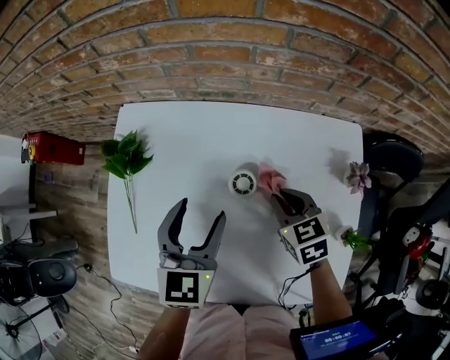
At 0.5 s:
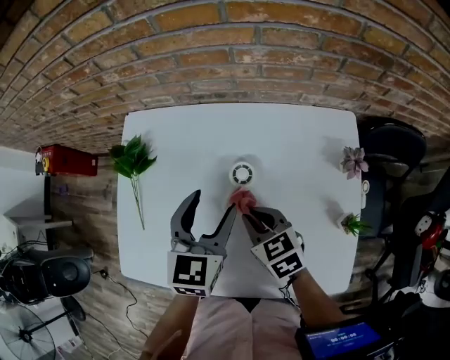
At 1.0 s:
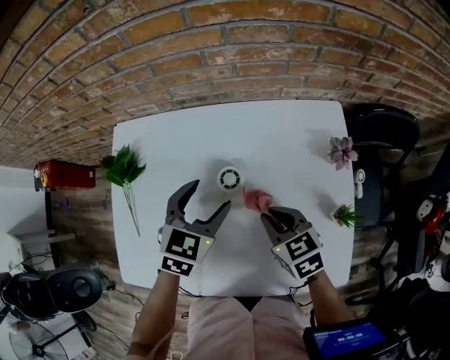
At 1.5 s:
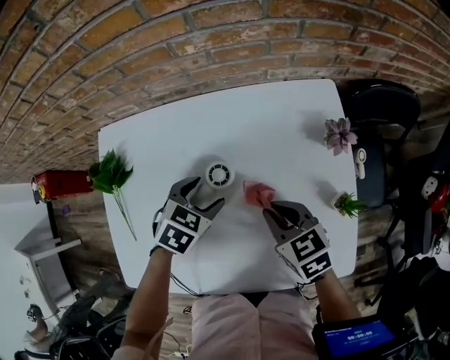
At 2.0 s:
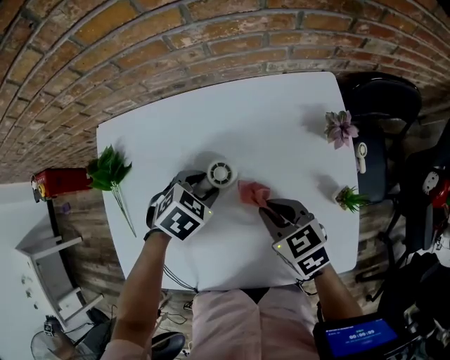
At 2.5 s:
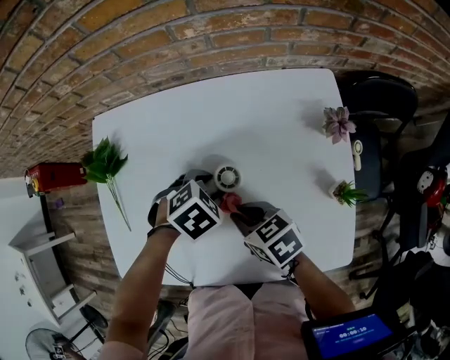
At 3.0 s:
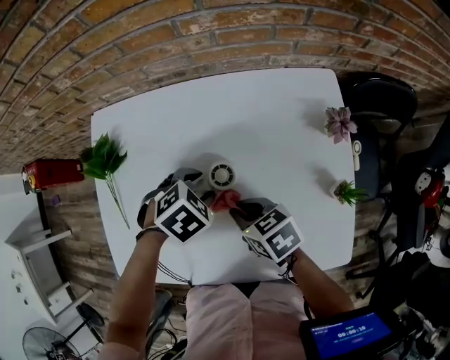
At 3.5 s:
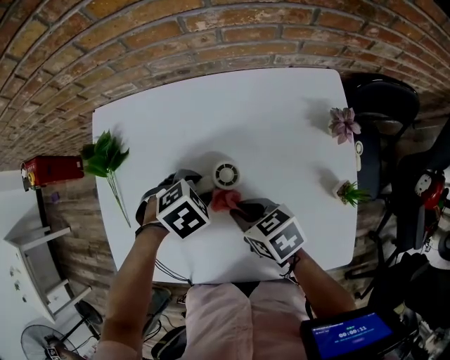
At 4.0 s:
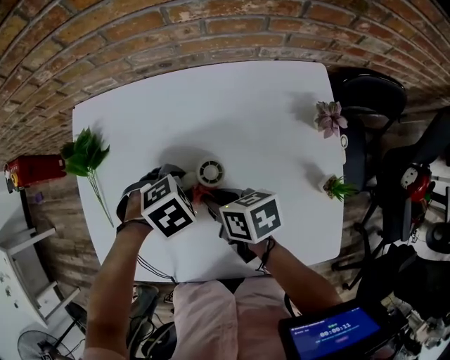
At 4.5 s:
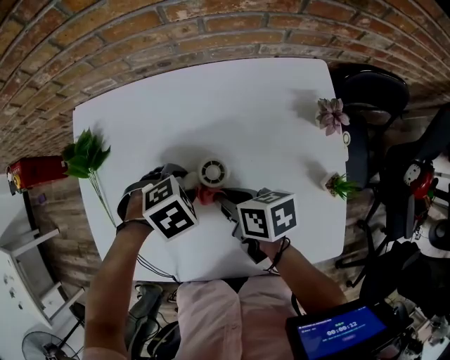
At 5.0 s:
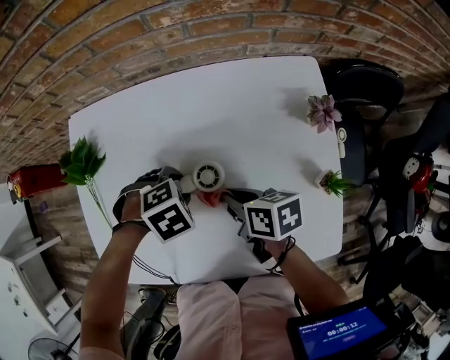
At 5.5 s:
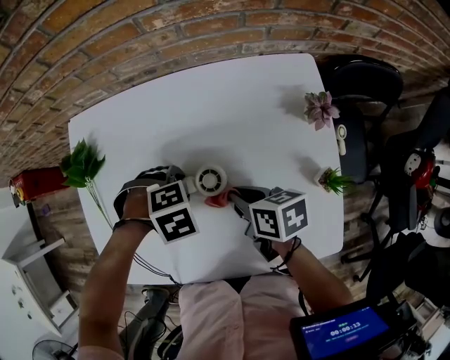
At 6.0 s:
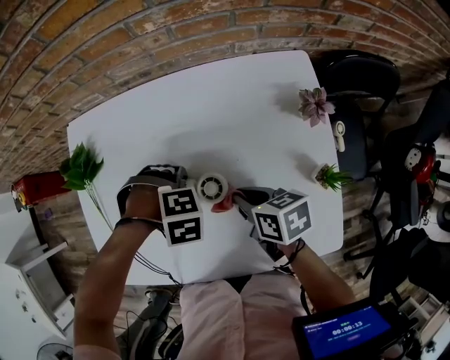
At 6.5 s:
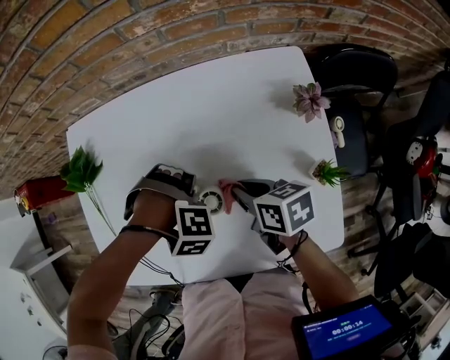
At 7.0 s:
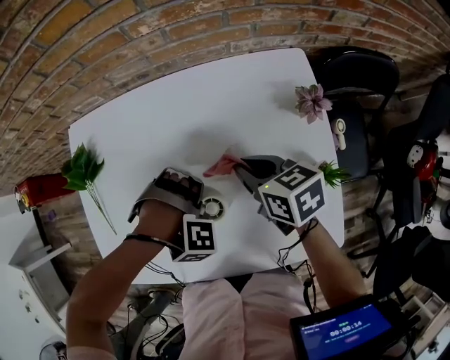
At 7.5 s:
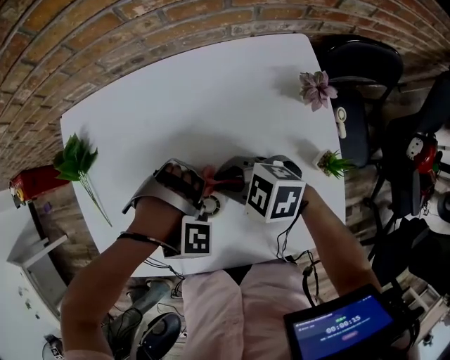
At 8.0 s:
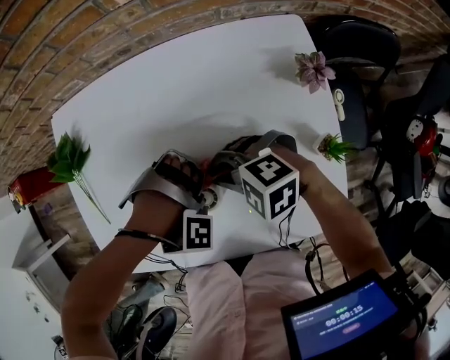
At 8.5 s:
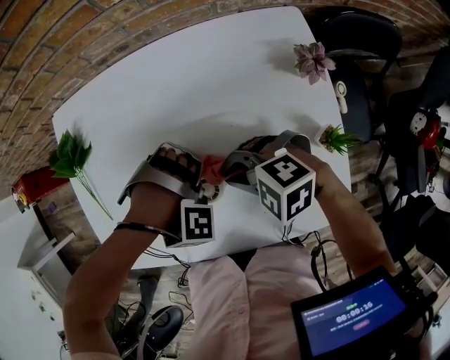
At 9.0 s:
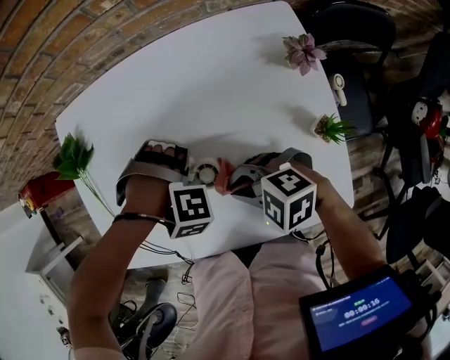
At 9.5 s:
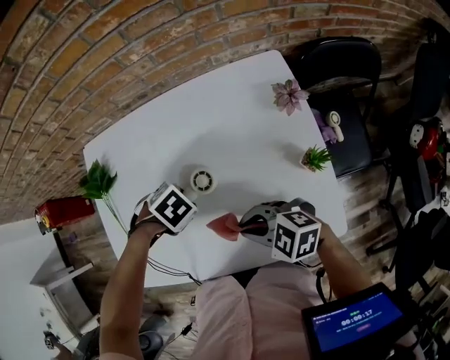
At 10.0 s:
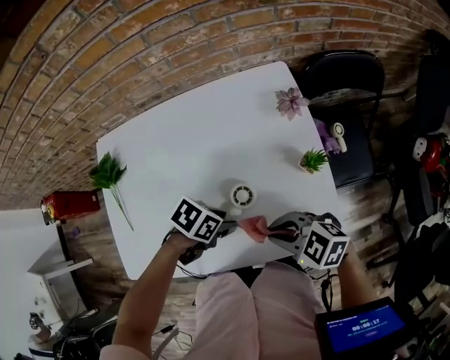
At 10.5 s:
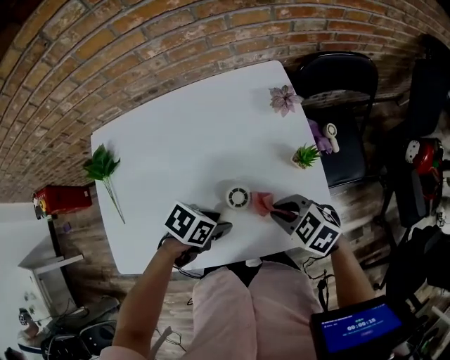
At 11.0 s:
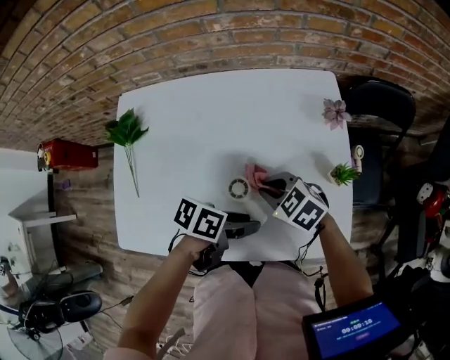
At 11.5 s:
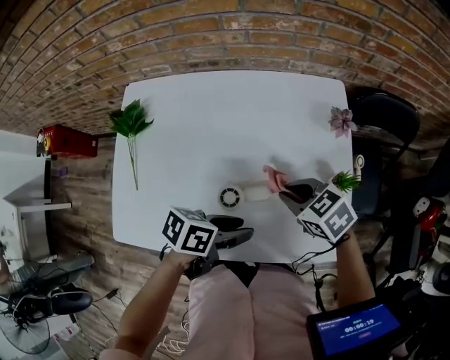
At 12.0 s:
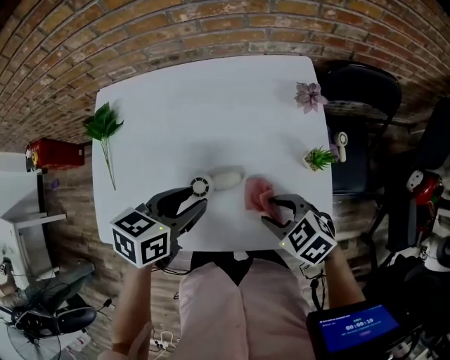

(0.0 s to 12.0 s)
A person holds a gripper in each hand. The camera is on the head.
0.0 s - 2.0 s: The right gripper is displaced backward by approximately 10 cm. The left gripper travels downward and to the right by roughly 15 cm, and tips its fingers downward by approximately 40 degrees.
2.0 s - 4.0 s: The right gripper moves roughly 10 cm, and changes its angle by some 30 degrees.
4.0 s - 6.0 s: The right gripper changes place by some 10 cm; the left gripper changes its angle by about 40 degrees.
6.0 s - 8.0 s: The left gripper twists approximately 40 degrees clockwise, seen from behind. The right gripper changes place by some 5 cm, and twists some 80 degrees counterclockwise, seen from behind.
8.0 s - 10.0 s: The right gripper ends up some 20 cm from where it was, and changes its angle by about 30 degrees. Meanwhile the left gripper ends up approximately 15 cm from where it was, and twists some 100 degrees counterclockwise, seen from behind.
10.0 s - 12.0 s: The right gripper opens. Meanwhile the left gripper shifts approximately 10 cm upward, and rotates some 40 degrees.

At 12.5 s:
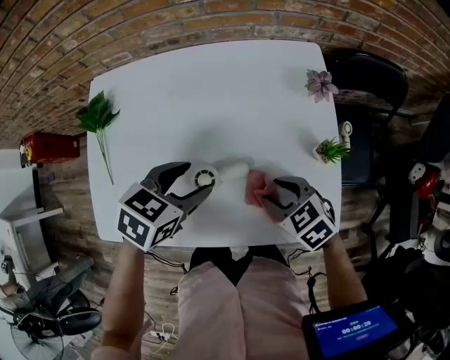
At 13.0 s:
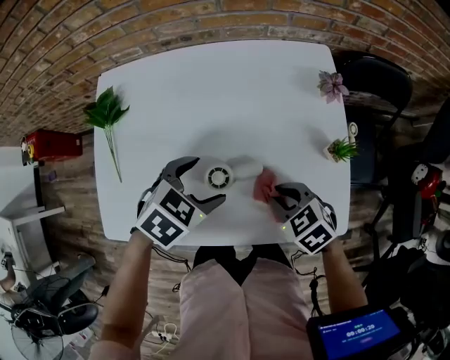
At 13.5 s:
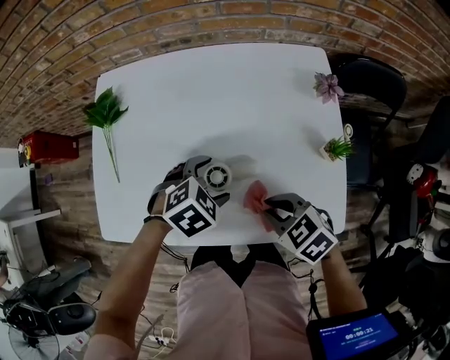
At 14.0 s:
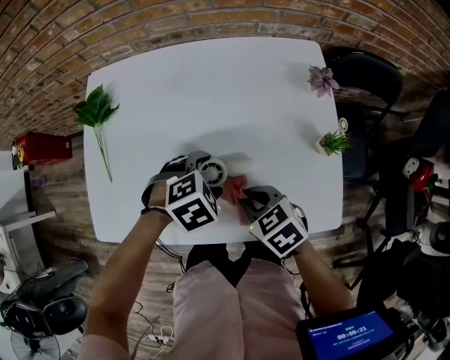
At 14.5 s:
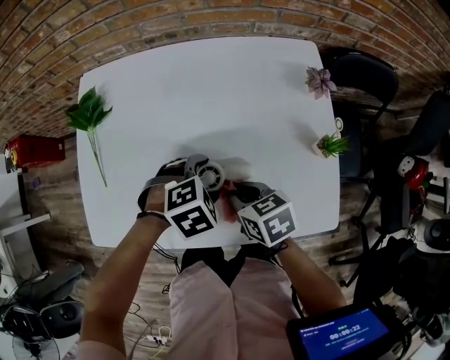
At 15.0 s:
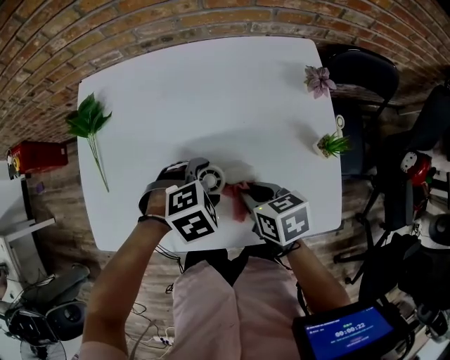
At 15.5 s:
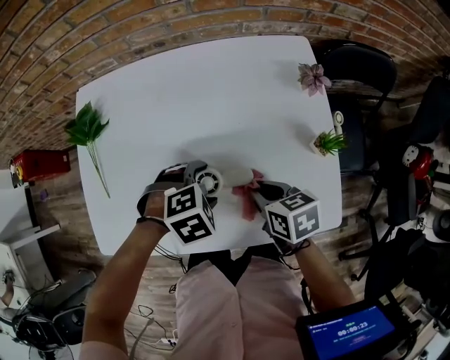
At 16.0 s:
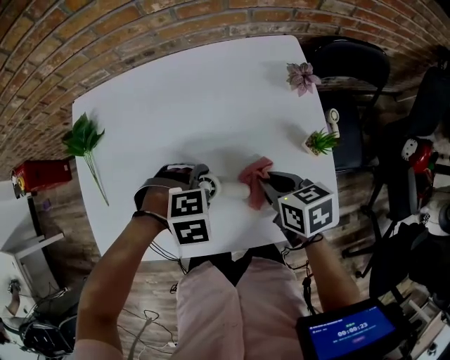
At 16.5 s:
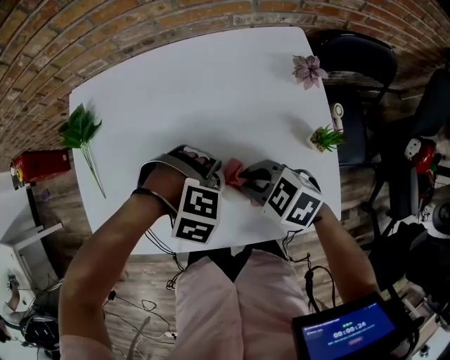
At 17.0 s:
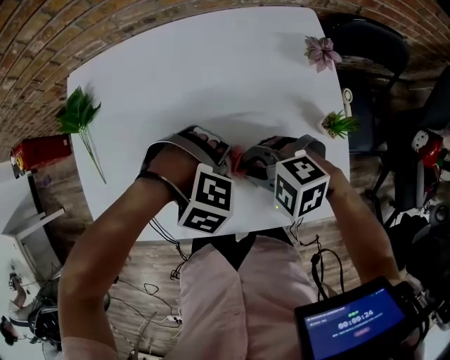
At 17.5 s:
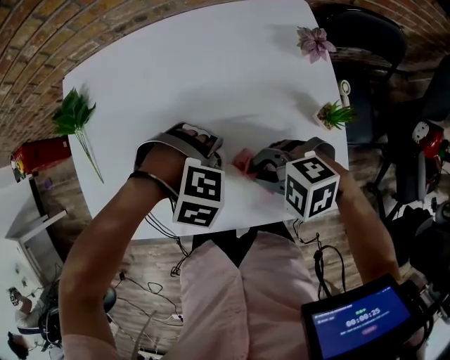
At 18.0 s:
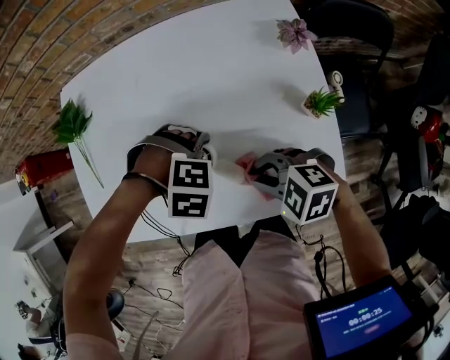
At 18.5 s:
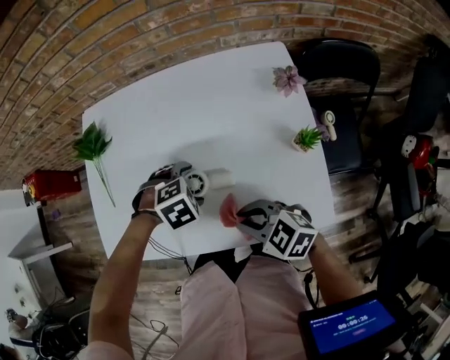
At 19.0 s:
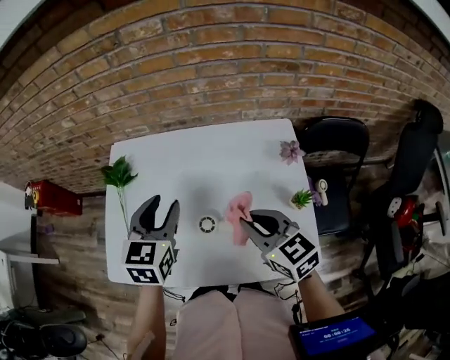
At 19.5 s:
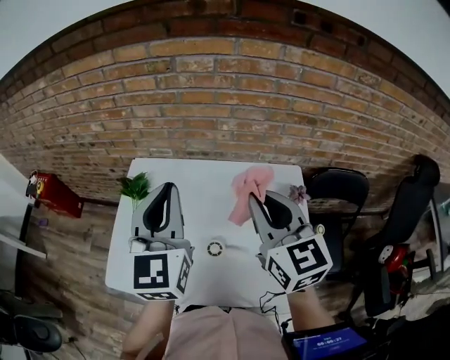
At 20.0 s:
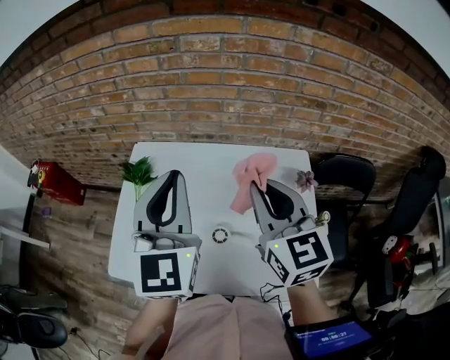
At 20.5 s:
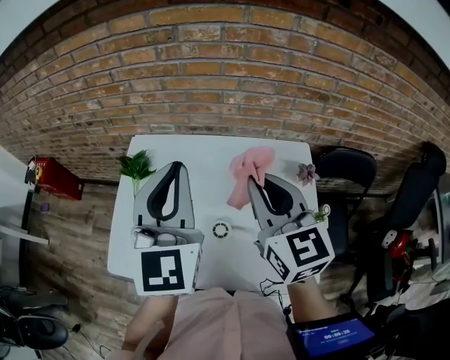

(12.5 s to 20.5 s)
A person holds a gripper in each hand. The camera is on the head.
12.5 s - 14.5 s: The left gripper shifts about 10 cm downward, and rotates roughly 40 degrees, while the right gripper ends up about 10 cm from where it was, changes its angle by about 30 degrees, and closes.
14.5 s - 16.5 s: The right gripper turns by roughly 40 degrees; the left gripper rotates around the line of its fingers by roughly 50 degrees, clockwise from behind.
16.5 s - 18.5 s: The left gripper twists approximately 40 degrees counterclockwise, seen from behind. Meanwhile the right gripper shifts by approximately 10 cm.
18.5 s - 20.5 s: Both grippers travel together upward, some 35 cm. The right gripper turns by some 50 degrees, while the left gripper tilts its fingers about 80 degrees upward, and closes its fingers.

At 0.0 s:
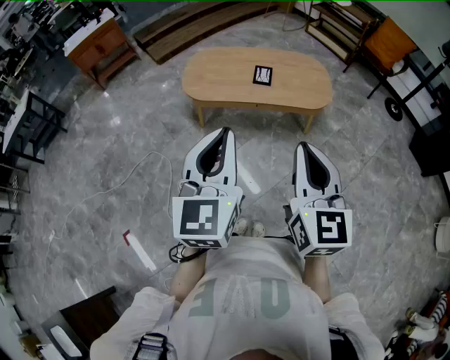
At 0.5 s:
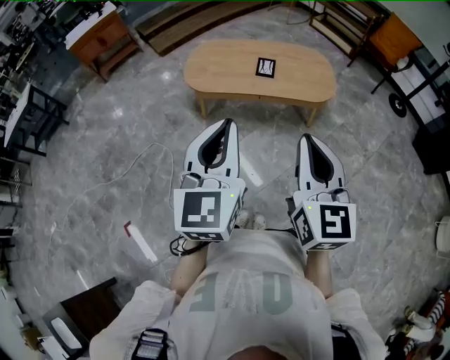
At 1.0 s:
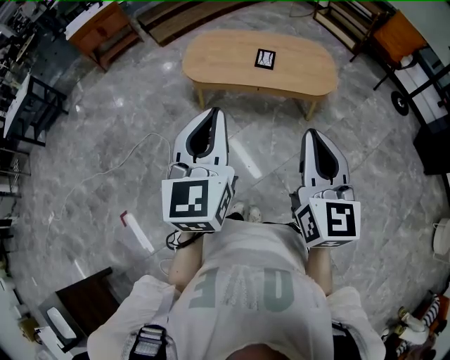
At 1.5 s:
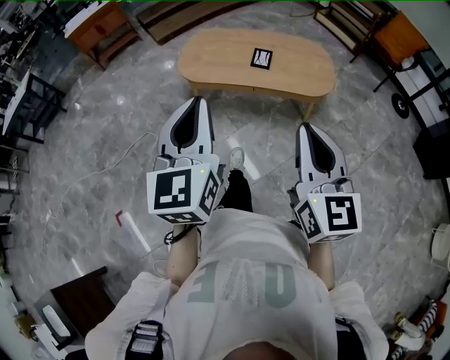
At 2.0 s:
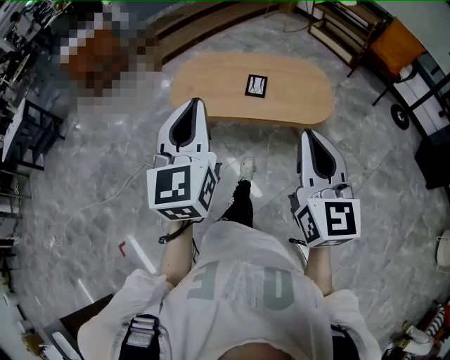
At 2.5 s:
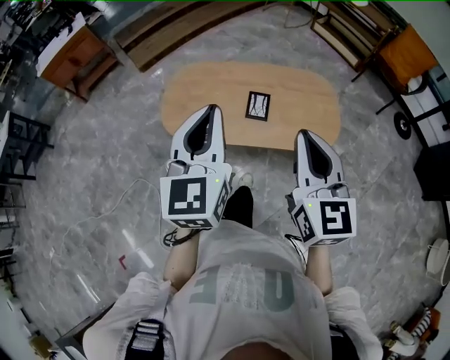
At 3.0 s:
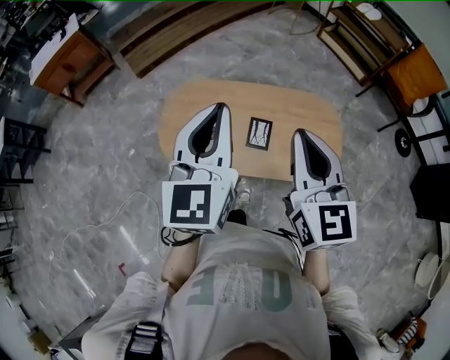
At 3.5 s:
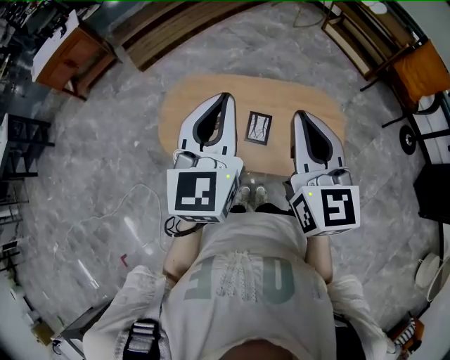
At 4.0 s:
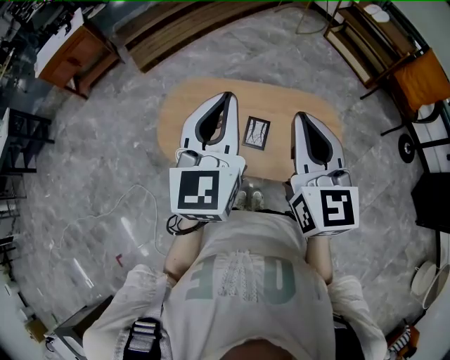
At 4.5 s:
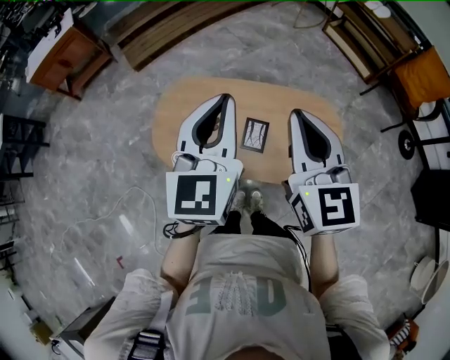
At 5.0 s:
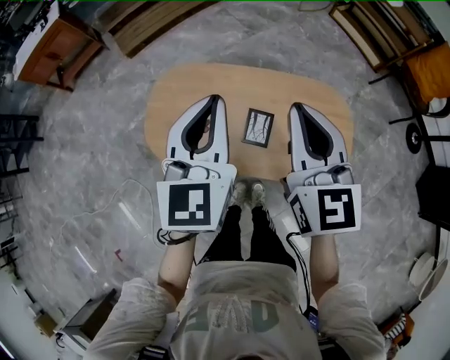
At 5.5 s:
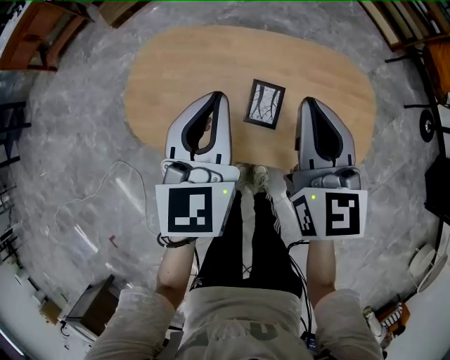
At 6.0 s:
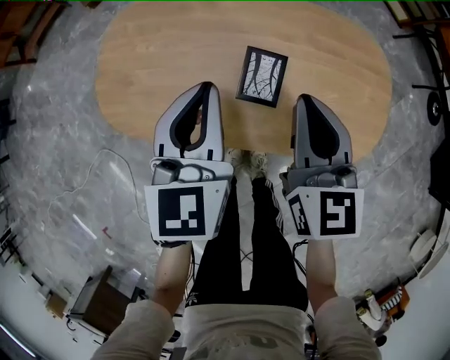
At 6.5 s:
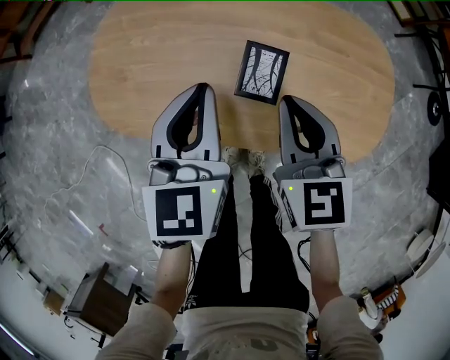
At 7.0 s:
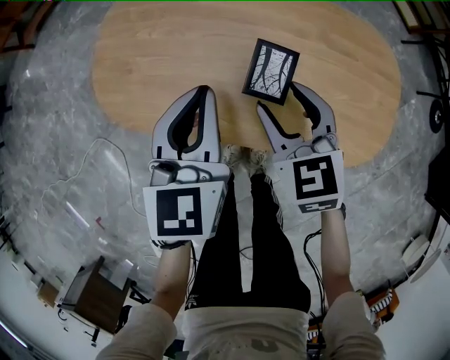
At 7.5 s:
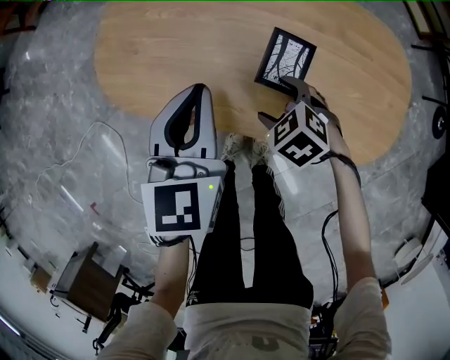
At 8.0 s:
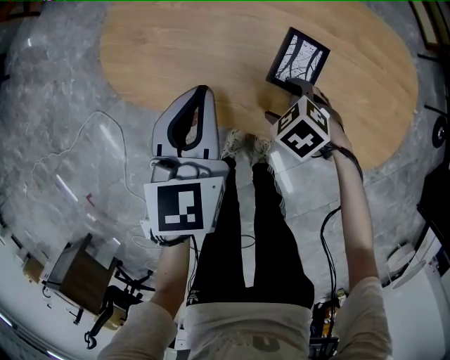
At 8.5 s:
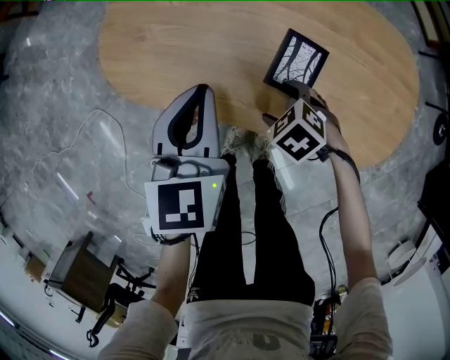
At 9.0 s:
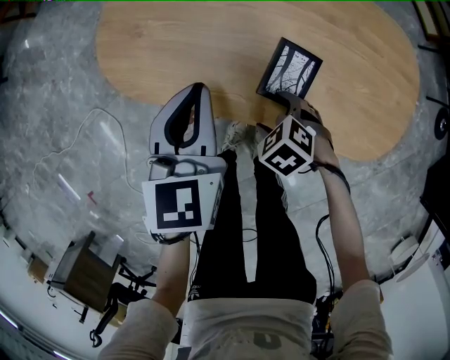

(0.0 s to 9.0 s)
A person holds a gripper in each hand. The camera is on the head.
0.0 s - 2.0 s: The right gripper goes roughly 15 cm forward and to the right; the left gripper shifts some 20 cm forward.
2.0 s - 4.5 s: Both grippers are carried forward, approximately 50 cm.
4.5 s - 7.0 s: Both grippers travel together downward, about 40 cm. The right gripper angles its fingers downward, by about 30 degrees, and opens its fingers. Meanwhile the left gripper swivels approximately 20 degrees.
7.0 s - 9.0 s: The left gripper shifts by approximately 10 cm; the right gripper goes roughly 15 cm downward, tips its fingers downward by some 40 degrees, and opens its fingers.
